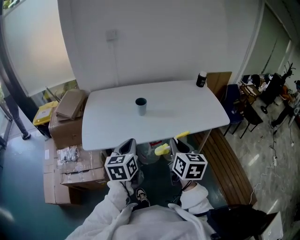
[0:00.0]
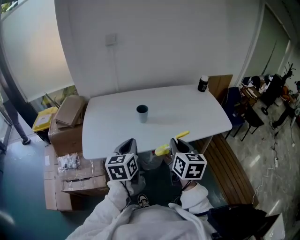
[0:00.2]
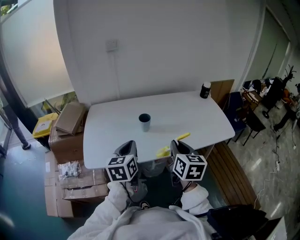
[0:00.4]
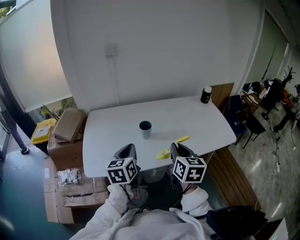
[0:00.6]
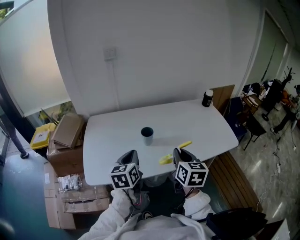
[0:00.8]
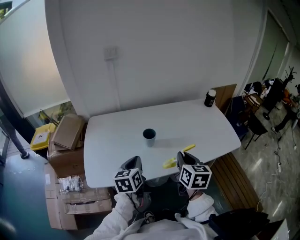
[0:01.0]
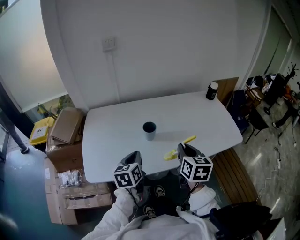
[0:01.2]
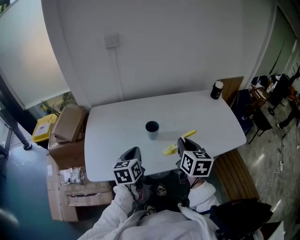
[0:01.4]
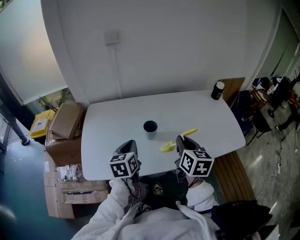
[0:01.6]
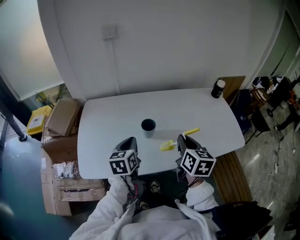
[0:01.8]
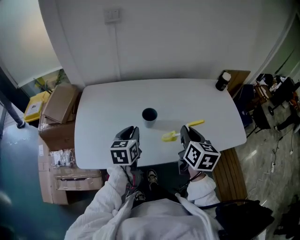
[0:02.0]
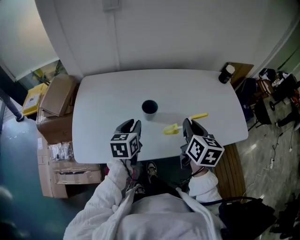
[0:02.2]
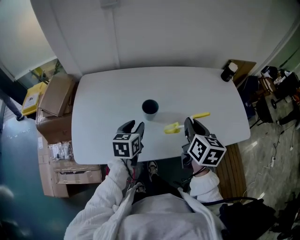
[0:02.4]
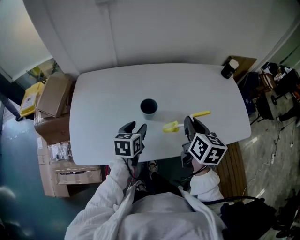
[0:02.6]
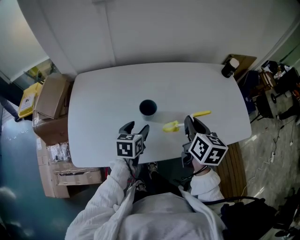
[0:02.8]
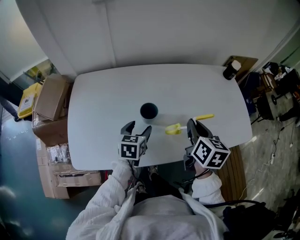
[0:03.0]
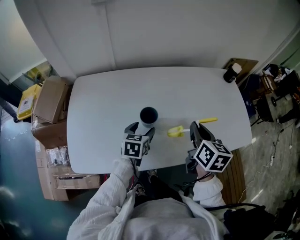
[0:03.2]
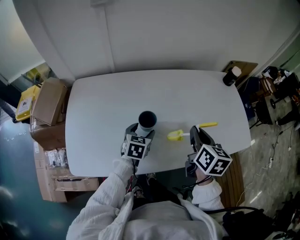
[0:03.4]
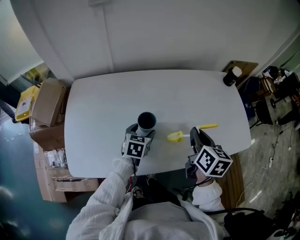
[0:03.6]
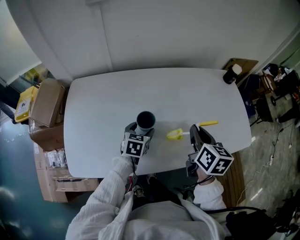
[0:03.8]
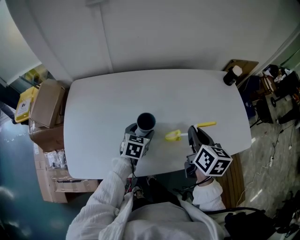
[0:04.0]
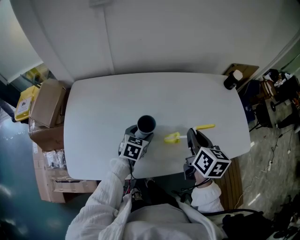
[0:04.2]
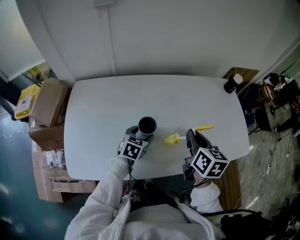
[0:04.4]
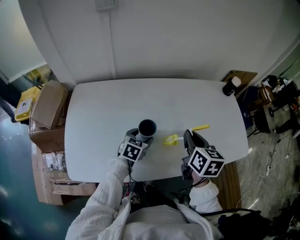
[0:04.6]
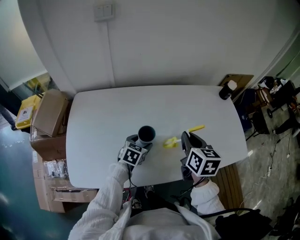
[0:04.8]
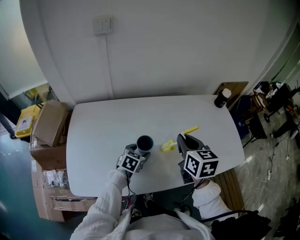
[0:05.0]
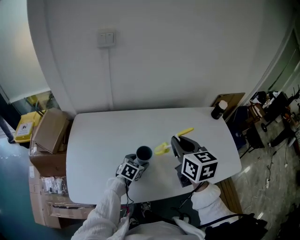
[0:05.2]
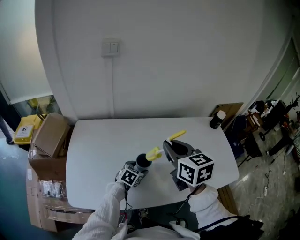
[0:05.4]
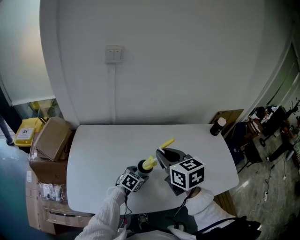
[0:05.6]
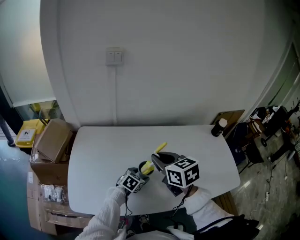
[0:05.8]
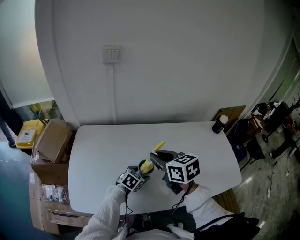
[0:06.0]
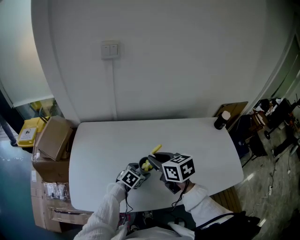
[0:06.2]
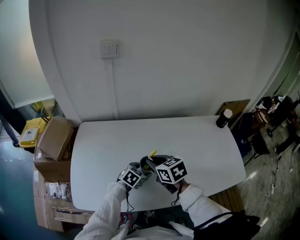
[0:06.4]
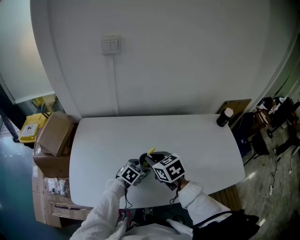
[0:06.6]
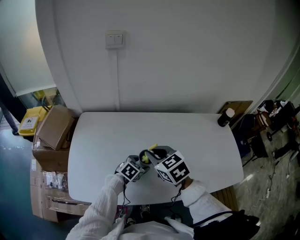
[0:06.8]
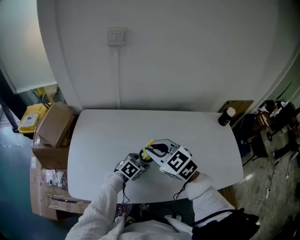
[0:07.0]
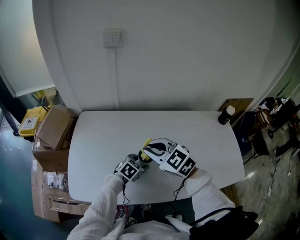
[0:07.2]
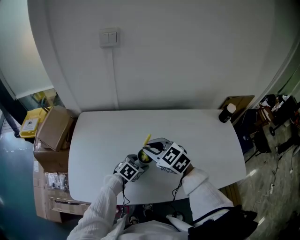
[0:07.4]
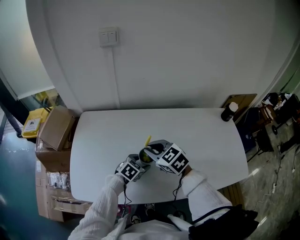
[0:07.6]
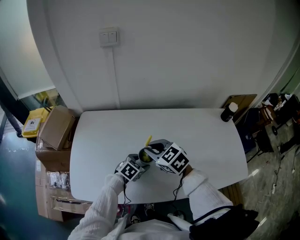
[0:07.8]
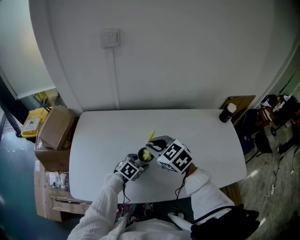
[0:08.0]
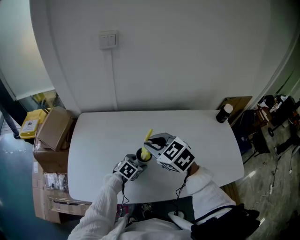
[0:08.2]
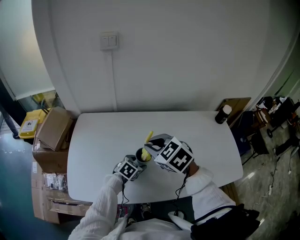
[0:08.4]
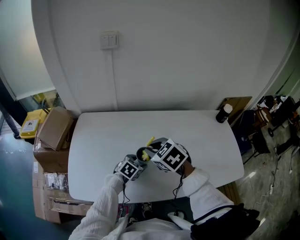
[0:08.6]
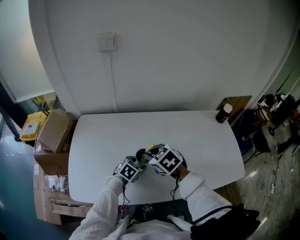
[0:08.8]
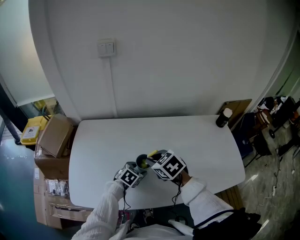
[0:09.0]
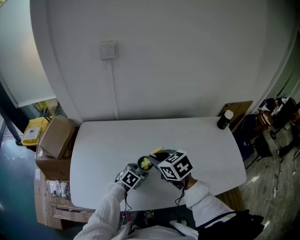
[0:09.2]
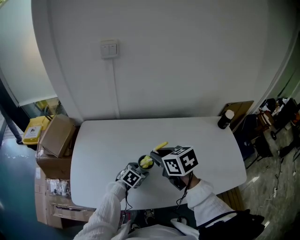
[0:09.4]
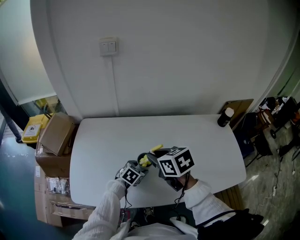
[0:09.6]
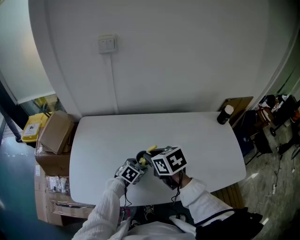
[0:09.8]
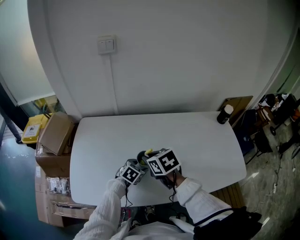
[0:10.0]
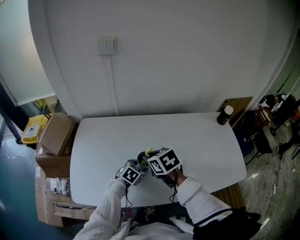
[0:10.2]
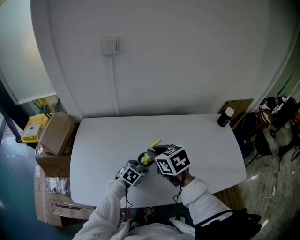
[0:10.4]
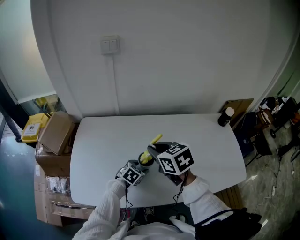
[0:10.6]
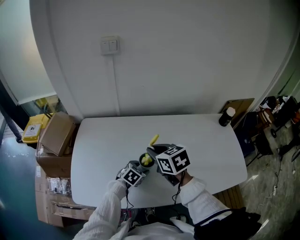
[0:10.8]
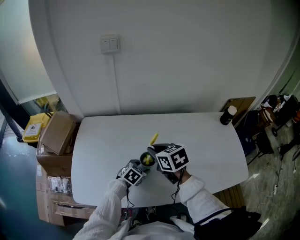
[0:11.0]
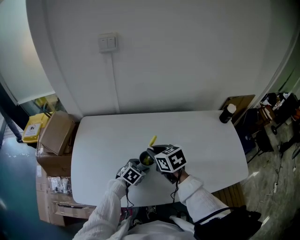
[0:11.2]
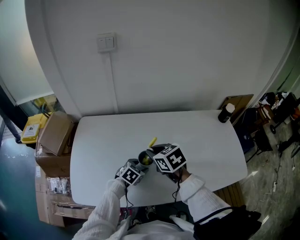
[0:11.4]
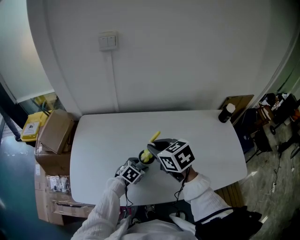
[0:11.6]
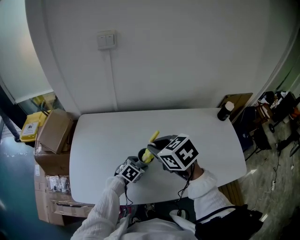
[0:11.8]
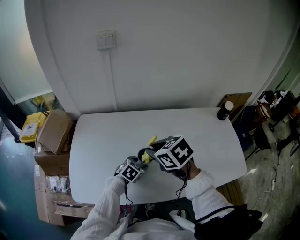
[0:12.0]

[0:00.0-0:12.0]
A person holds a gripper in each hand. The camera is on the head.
0:00.0 to 0:01.6: Both grippers move forward, roughly 20 cm.
0:01.6 to 0:03.0: The left gripper heads downward, forward and to the right, covering some 15 cm, and opens, while the right gripper moves forward and downward, roughly 10 cm.
0:03.0 to 0:04.4: The left gripper ends up approximately 5 cm from where it was.
0:04.4 to 0:06.0: The right gripper travels to the left by about 15 cm, and swivels roughly 40 degrees.
0:06.0 to 0:07.6: The right gripper goes up and down, some 10 cm each way, reversing 2 times, and changes its angle by approximately 30 degrees.
0:07.6 to 0:09.0: The right gripper reaches roughly 10 cm upward, then returns.
0:09.0 to 0:10.4: The right gripper goes up and down, approximately 5 cm each way, reversing 2 times.
0:10.4 to 0:12.0: The right gripper moves approximately 5 cm downward and comes back.

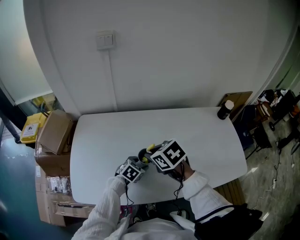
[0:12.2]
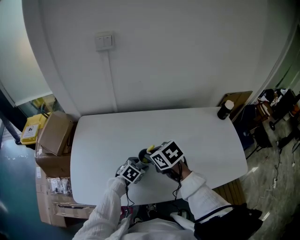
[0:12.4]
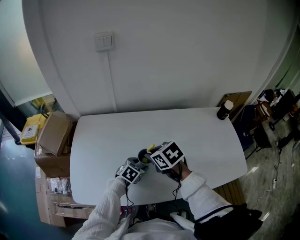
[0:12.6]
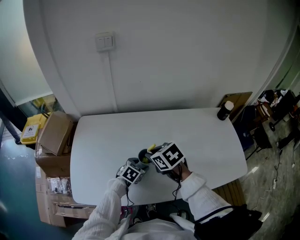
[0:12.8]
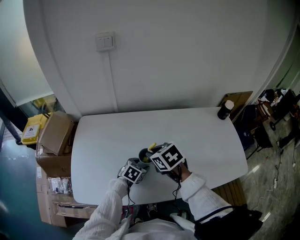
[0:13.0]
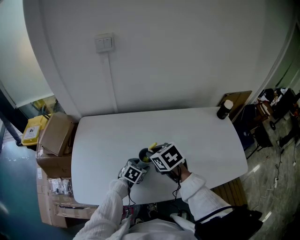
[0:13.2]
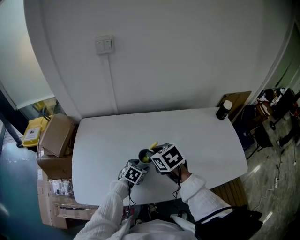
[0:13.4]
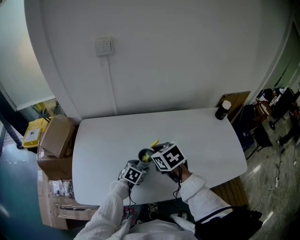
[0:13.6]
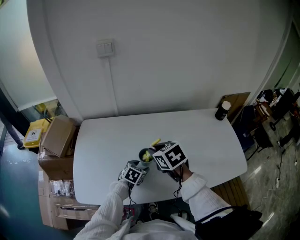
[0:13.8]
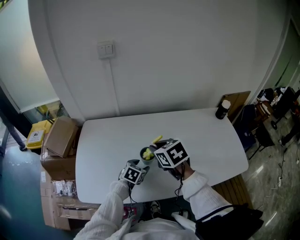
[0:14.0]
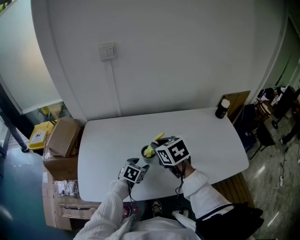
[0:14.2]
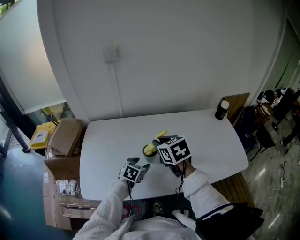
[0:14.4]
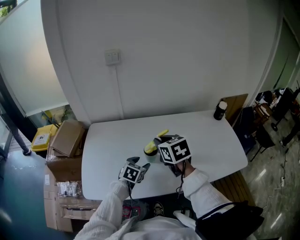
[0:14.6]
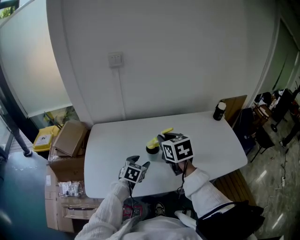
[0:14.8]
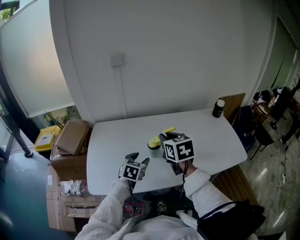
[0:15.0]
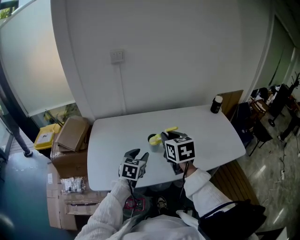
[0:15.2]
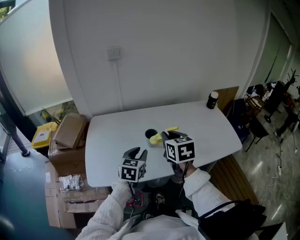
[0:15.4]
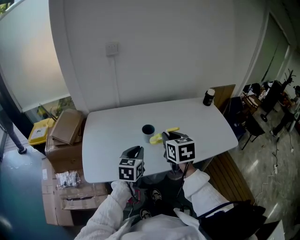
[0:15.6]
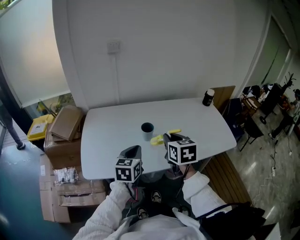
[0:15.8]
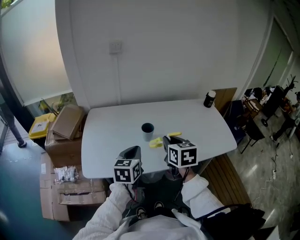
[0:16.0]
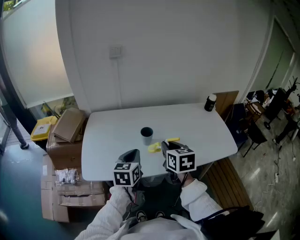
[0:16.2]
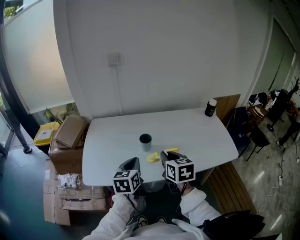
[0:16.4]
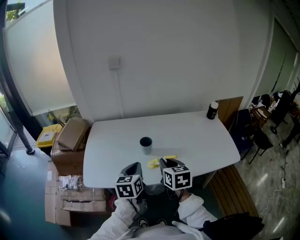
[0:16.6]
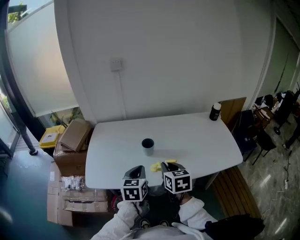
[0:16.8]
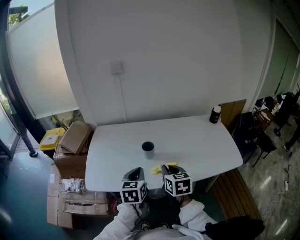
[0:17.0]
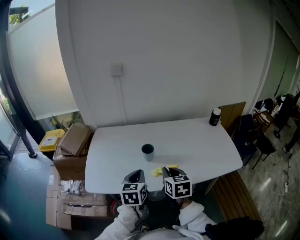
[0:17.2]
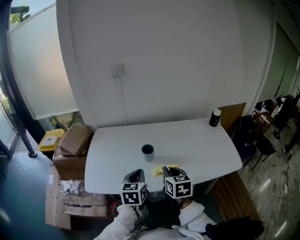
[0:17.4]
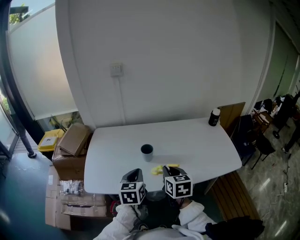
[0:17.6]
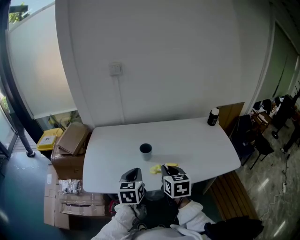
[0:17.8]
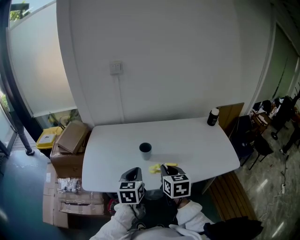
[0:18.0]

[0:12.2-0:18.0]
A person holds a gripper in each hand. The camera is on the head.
0:12.2 to 0:13.6: The grippers make only small movements.
0:13.6 to 0:15.0: The left gripper shifts roughly 15 cm upward, backward and to the left. Meanwhile the right gripper goes some 15 cm upward and backward, and turns by roughly 30 degrees.
0:15.0 to 0:16.6: The left gripper heads backward and upward, covering some 15 cm, turns by about 30 degrees, and closes up; the right gripper heads backward, to the right and downward, covering some 15 cm.
0:16.6 to 0:18.0: There are only small adjustments of the grippers.

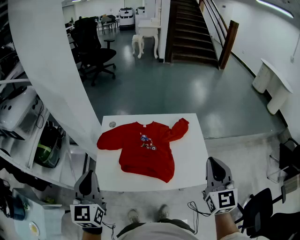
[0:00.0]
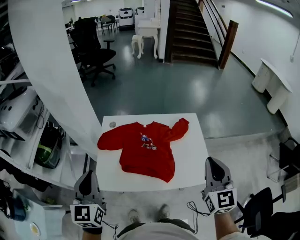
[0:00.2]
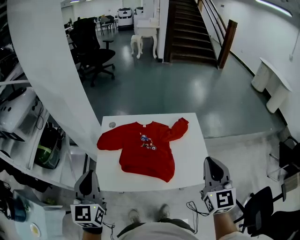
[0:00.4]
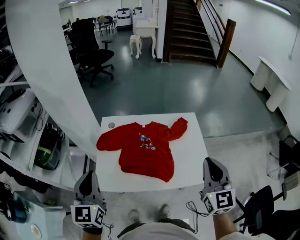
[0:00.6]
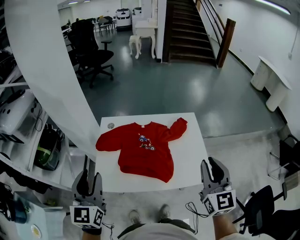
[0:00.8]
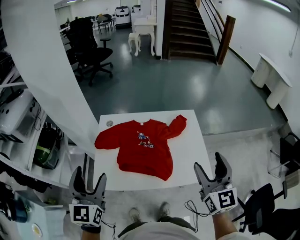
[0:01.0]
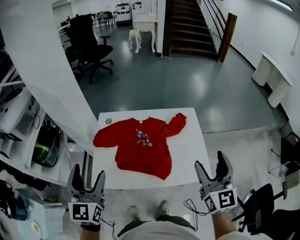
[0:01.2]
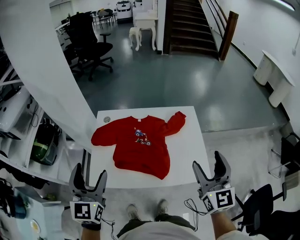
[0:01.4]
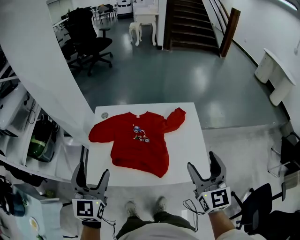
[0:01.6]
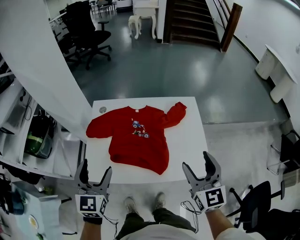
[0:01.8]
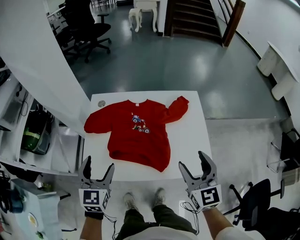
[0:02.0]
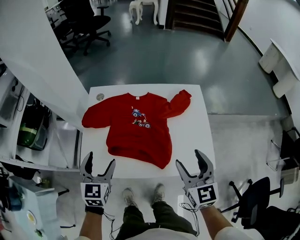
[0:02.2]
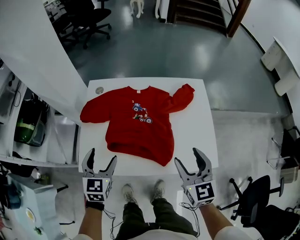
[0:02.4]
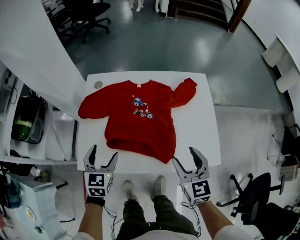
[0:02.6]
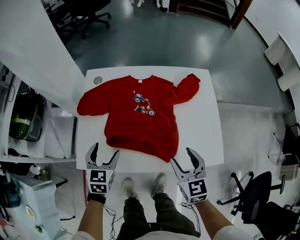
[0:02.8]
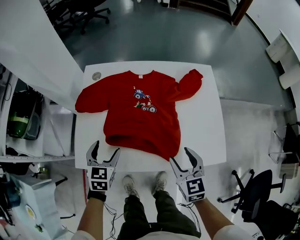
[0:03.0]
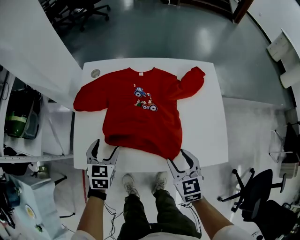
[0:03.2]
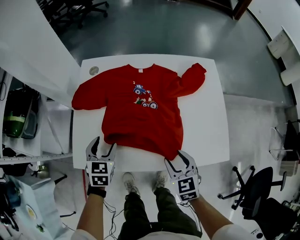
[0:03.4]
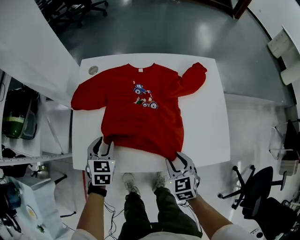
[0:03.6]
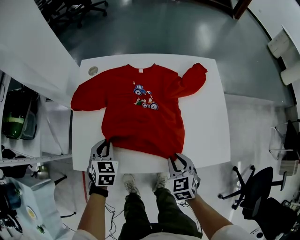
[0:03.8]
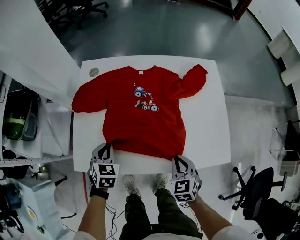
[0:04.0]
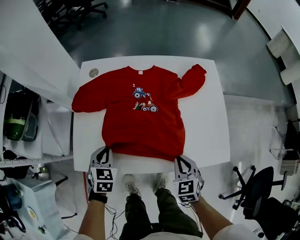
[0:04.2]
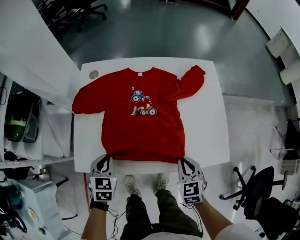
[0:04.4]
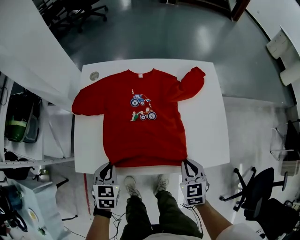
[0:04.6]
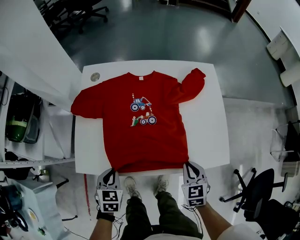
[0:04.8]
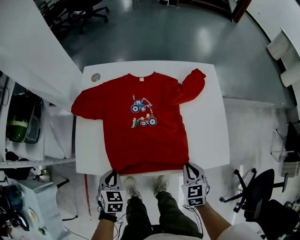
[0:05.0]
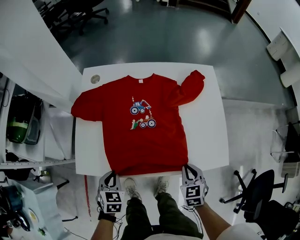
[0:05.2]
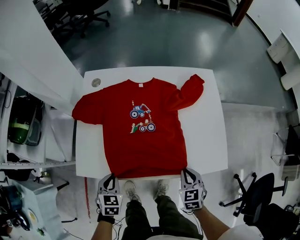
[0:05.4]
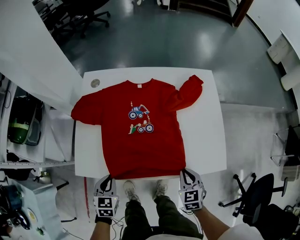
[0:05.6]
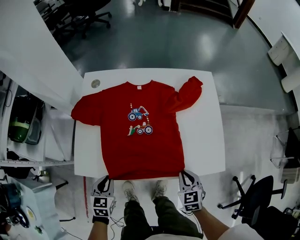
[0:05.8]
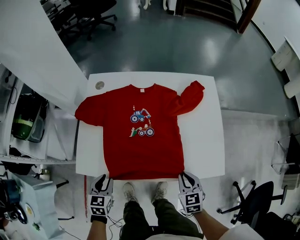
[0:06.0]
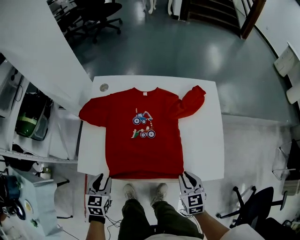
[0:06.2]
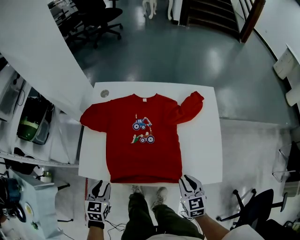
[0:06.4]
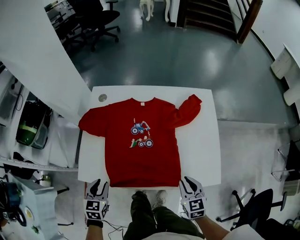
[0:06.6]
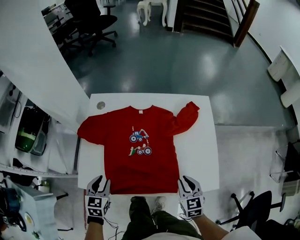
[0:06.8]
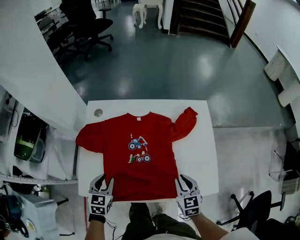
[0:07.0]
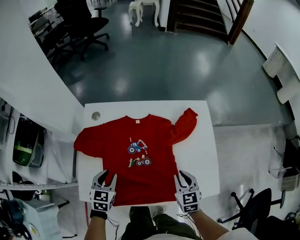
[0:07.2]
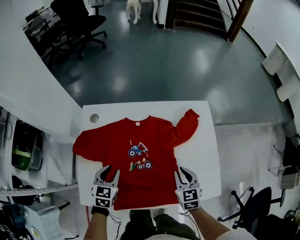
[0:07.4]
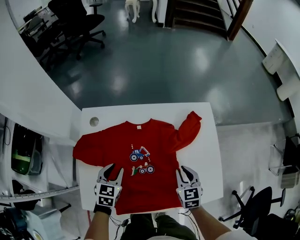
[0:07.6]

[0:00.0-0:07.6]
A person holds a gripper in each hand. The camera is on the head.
0:00.0 to 0:01.6: The left gripper is displaced to the right by approximately 5 cm, and opens its fingers. Meanwhile the right gripper goes some 5 cm downward, and opens up.
0:01.6 to 0:03.0: Both grippers travel together downward, some 30 cm. The left gripper turns by approximately 30 degrees. The right gripper changes its angle by roughly 30 degrees.
0:03.0 to 0:04.6: The right gripper moves downward, approximately 5 cm, and closes. The left gripper heads backward, covering some 5 cm, and closes up.
0:04.6 to 0:06.0: There are only small adjustments of the grippers.
0:06.0 to 0:07.6: The grippers both shift forward by some 20 cm.
